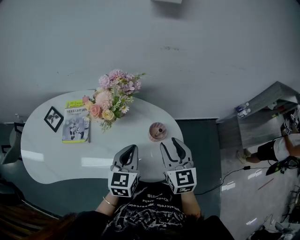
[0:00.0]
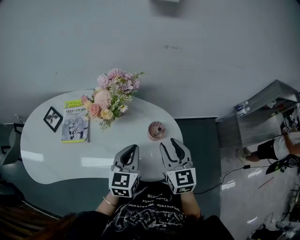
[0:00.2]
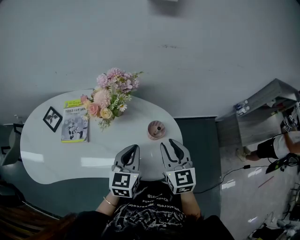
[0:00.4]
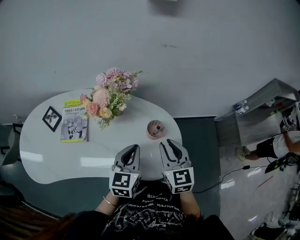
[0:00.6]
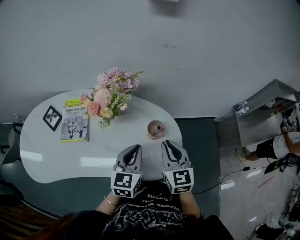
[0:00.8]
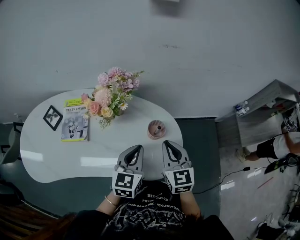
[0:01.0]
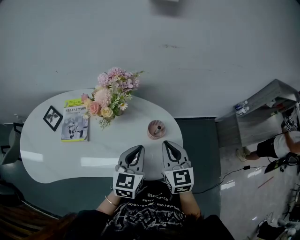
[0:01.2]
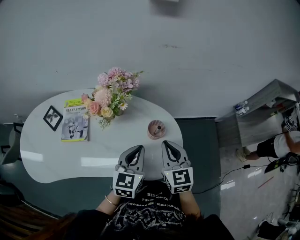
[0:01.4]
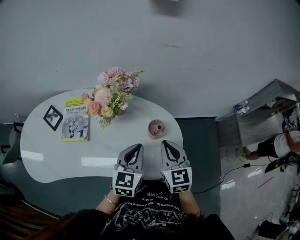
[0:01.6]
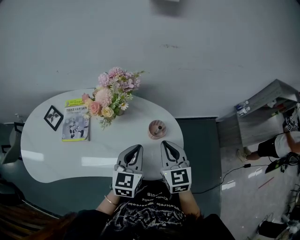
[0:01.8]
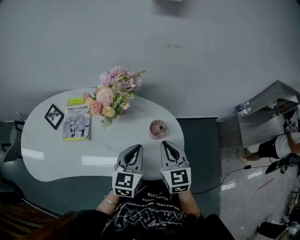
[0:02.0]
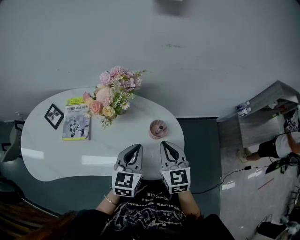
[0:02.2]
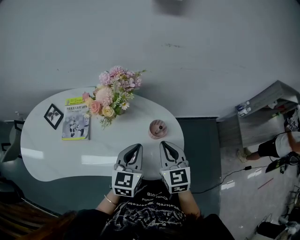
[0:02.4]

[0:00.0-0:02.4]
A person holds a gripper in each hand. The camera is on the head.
0:00.0 to 0:01.2: The right gripper closes up.
0:01.2 to 0:02.4: The grippers make only small movements.

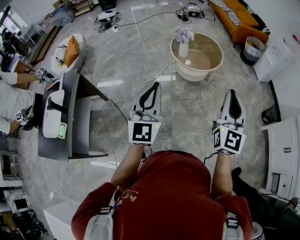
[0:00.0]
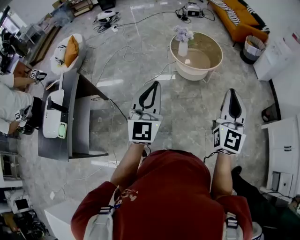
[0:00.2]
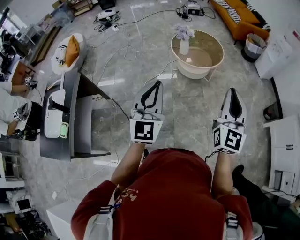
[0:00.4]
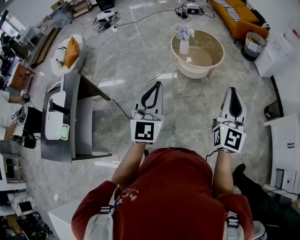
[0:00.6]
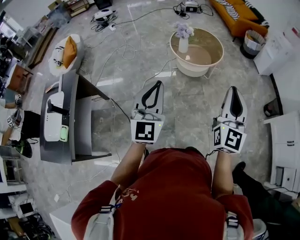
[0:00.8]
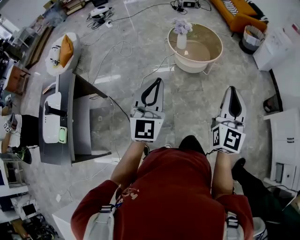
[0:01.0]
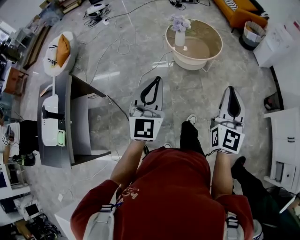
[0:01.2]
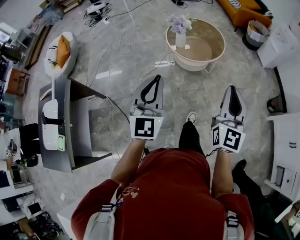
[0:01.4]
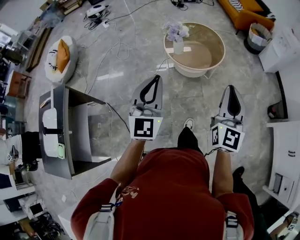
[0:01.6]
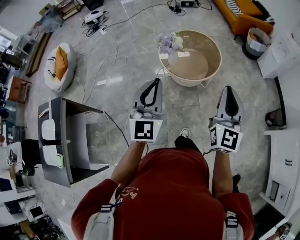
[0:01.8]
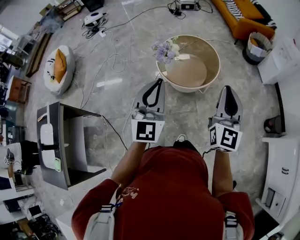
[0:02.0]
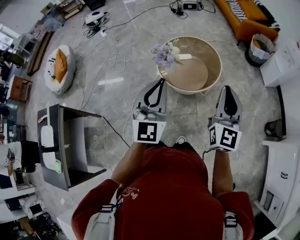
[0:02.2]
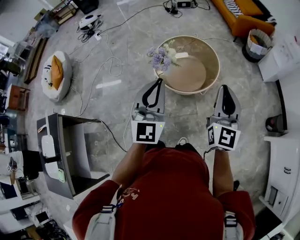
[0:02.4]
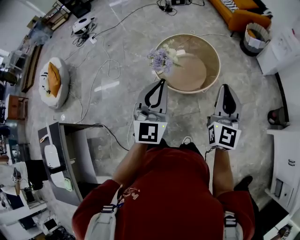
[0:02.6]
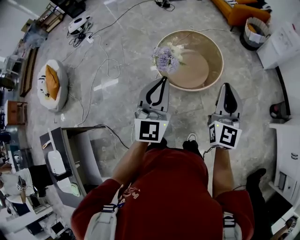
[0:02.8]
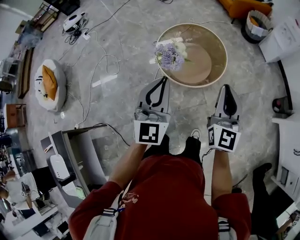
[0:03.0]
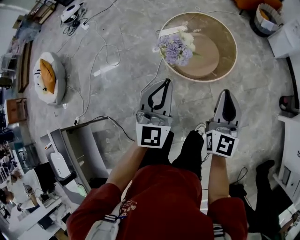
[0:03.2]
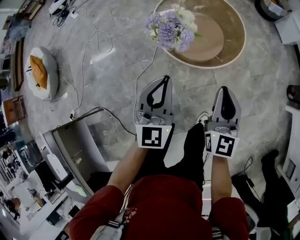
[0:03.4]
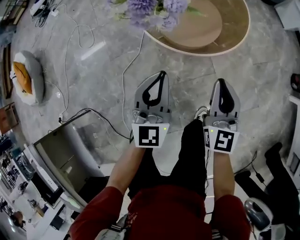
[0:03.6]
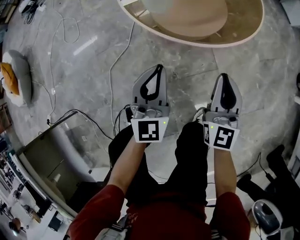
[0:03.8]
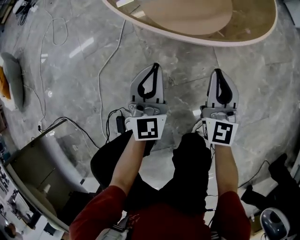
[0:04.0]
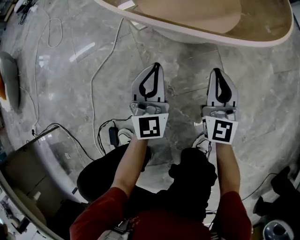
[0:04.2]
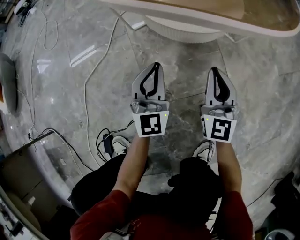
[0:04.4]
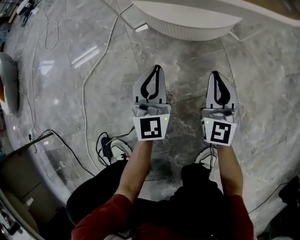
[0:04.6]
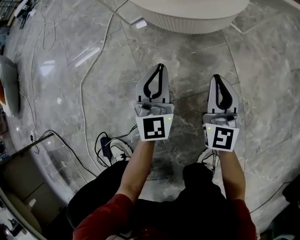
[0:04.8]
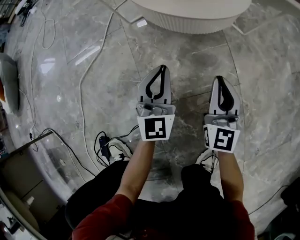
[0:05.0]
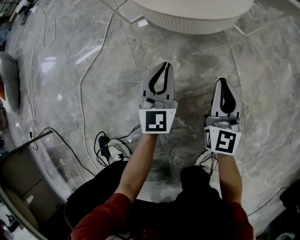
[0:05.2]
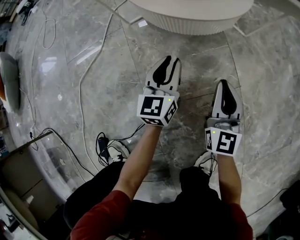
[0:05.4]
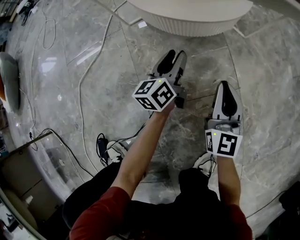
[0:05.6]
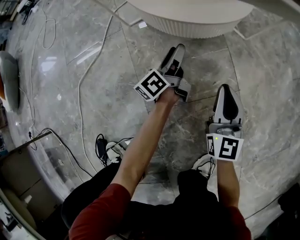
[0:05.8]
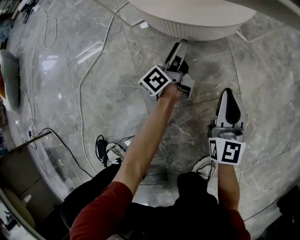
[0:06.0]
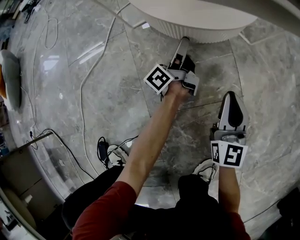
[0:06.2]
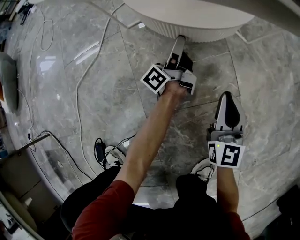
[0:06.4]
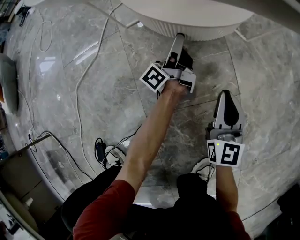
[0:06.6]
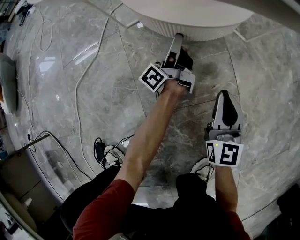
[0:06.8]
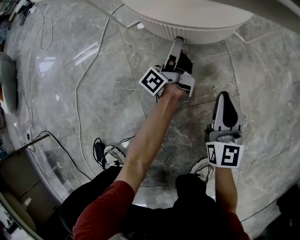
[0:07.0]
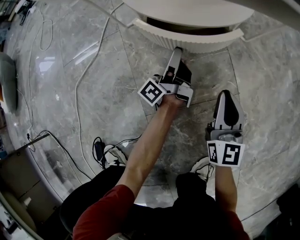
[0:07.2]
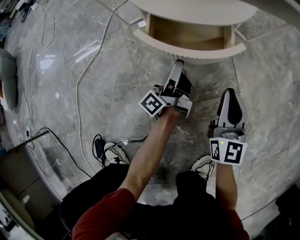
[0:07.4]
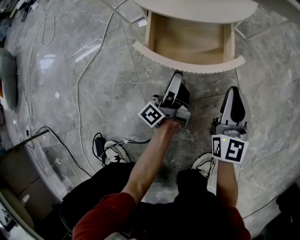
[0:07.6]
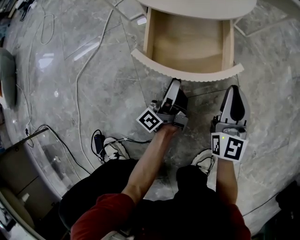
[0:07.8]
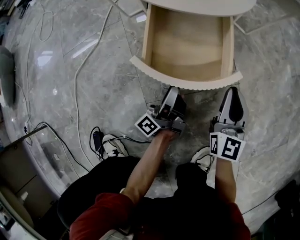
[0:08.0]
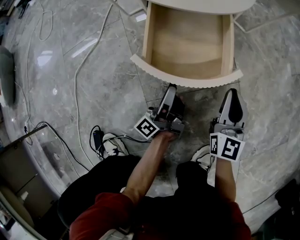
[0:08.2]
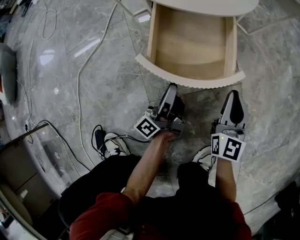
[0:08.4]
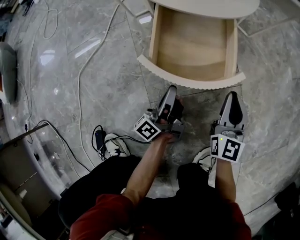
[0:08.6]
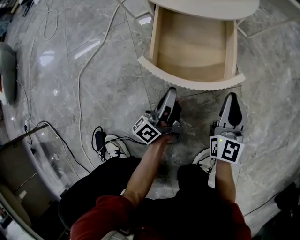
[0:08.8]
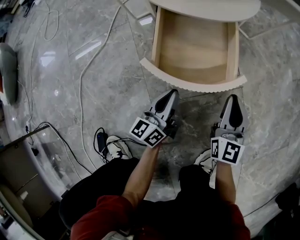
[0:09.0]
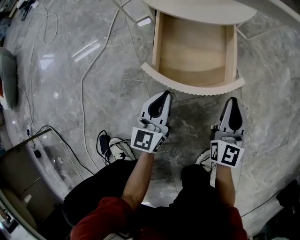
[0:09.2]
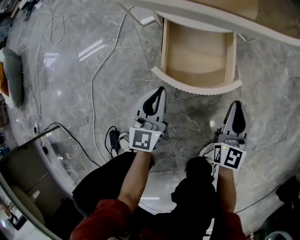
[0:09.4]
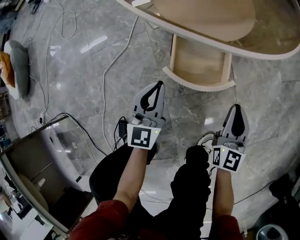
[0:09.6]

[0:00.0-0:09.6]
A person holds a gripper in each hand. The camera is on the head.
0:00.0 to 0:01.6: The two grippers go roughly 20 cm forward.
0:01.6 to 0:03.2: The right gripper travels forward, downward and to the left by approximately 30 cm; the left gripper travels forward by about 30 cm.
0:03.2 to 0:04.8: The grippers both shift downward by some 80 cm.
0:04.8 to 0:06.4: The right gripper shifts by some 5 cm; the left gripper goes roughly 20 cm forward and downward, twists approximately 90 degrees counterclockwise, seen from behind, and opens its fingers.
0:06.4 to 0:08.0: The left gripper goes approximately 20 cm backward.
0:08.0 to 0:09.6: The right gripper shifts roughly 15 cm upward. Meanwhile the left gripper moves upward and to the left, approximately 25 cm, twists roughly 90 degrees clockwise, seen from behind, and closes up.

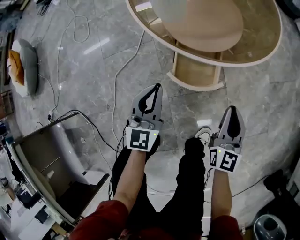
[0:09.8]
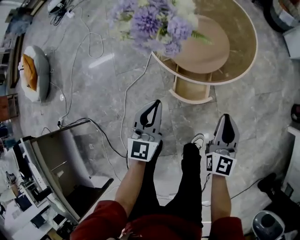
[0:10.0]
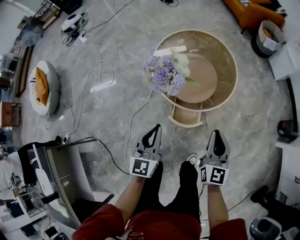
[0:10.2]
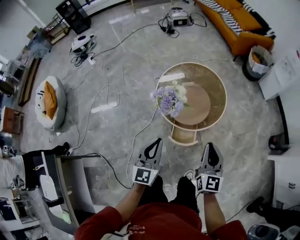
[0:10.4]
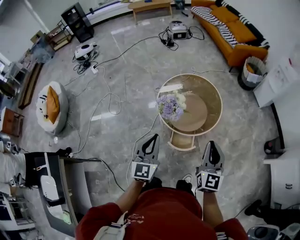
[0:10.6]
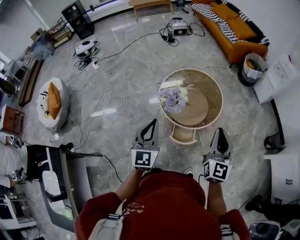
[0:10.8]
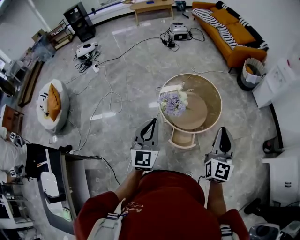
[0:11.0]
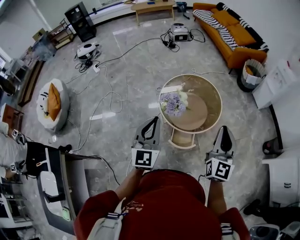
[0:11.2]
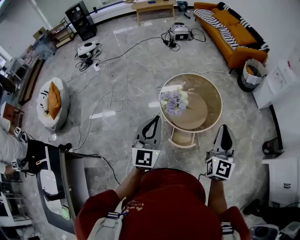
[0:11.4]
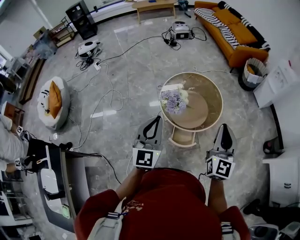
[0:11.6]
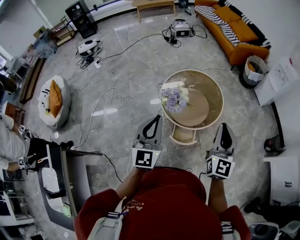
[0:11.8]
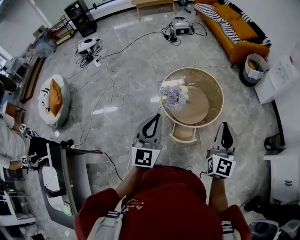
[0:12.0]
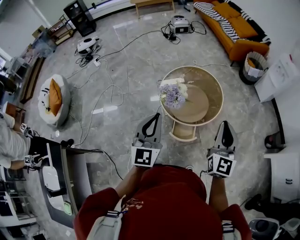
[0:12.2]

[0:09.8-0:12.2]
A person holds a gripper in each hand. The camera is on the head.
0:09.8 to 0:11.0: The grippers both shift upward by about 60 cm. The right gripper turns by roughly 20 degrees.
0:11.0 to 0:12.2: The grippers move only a little.

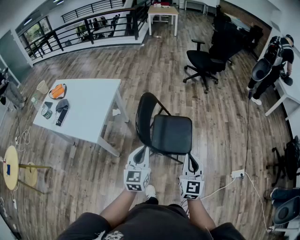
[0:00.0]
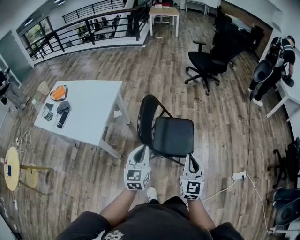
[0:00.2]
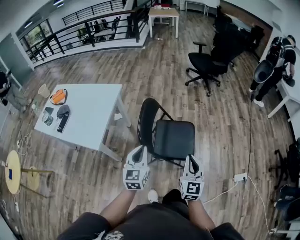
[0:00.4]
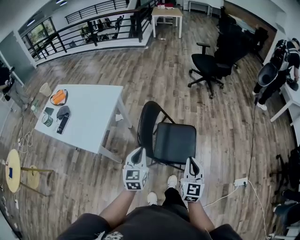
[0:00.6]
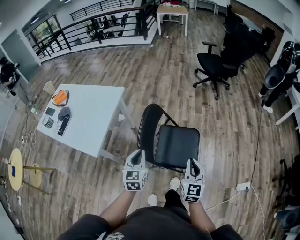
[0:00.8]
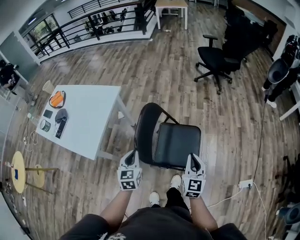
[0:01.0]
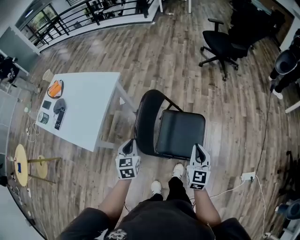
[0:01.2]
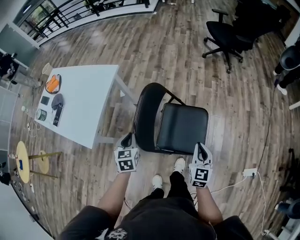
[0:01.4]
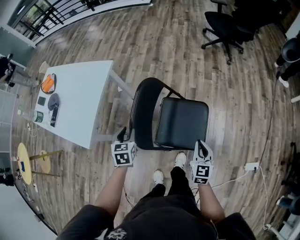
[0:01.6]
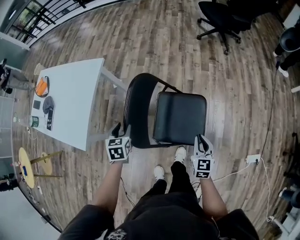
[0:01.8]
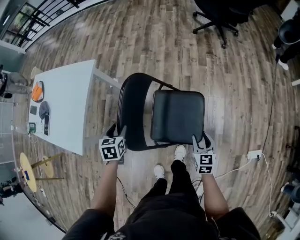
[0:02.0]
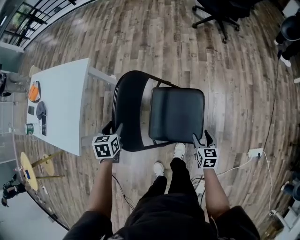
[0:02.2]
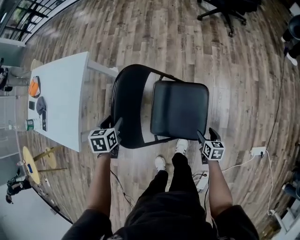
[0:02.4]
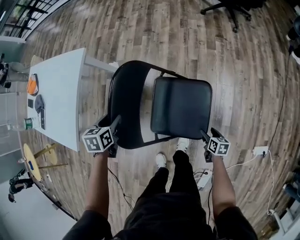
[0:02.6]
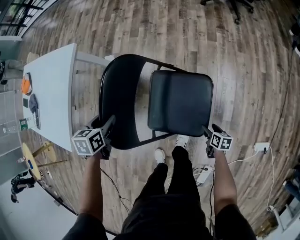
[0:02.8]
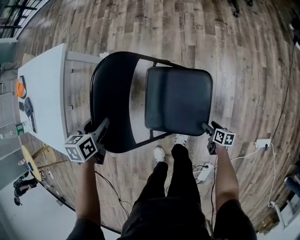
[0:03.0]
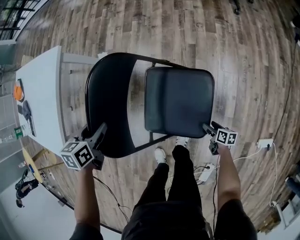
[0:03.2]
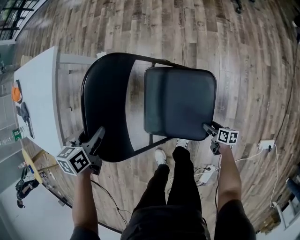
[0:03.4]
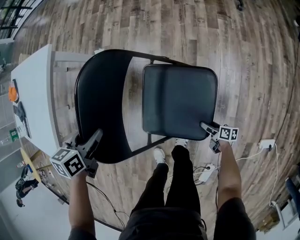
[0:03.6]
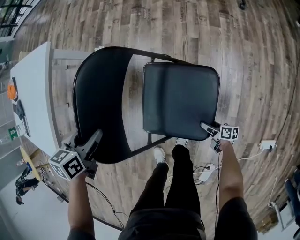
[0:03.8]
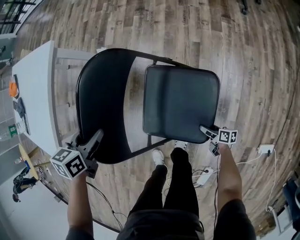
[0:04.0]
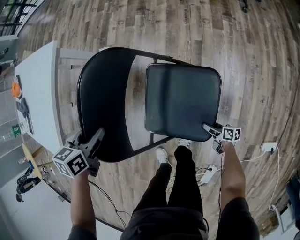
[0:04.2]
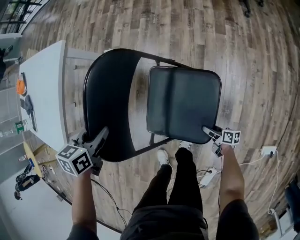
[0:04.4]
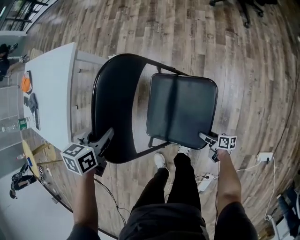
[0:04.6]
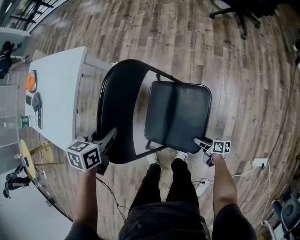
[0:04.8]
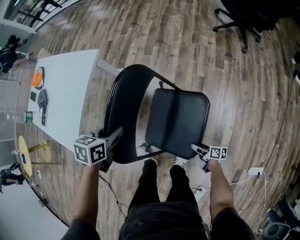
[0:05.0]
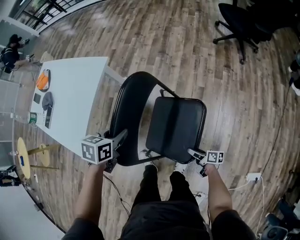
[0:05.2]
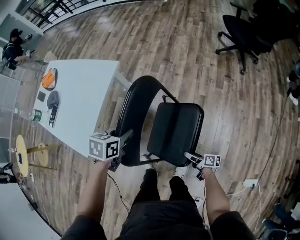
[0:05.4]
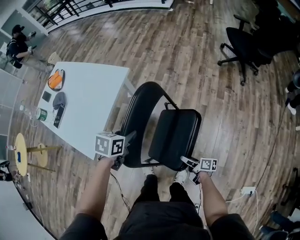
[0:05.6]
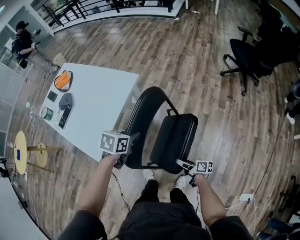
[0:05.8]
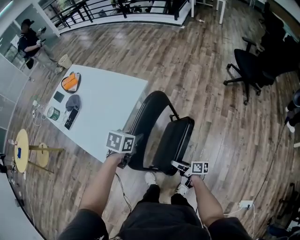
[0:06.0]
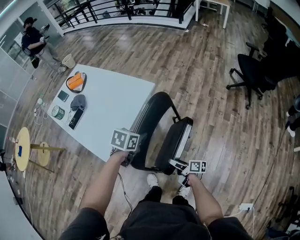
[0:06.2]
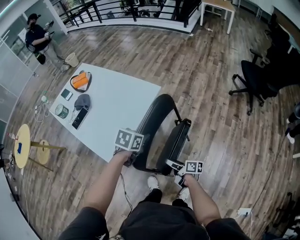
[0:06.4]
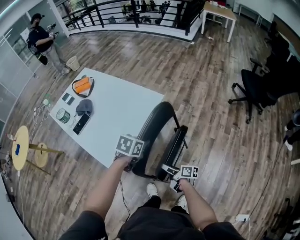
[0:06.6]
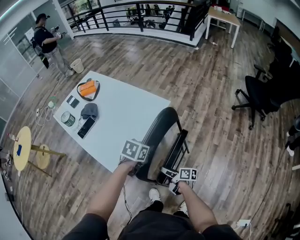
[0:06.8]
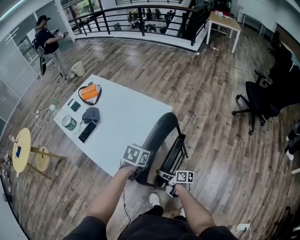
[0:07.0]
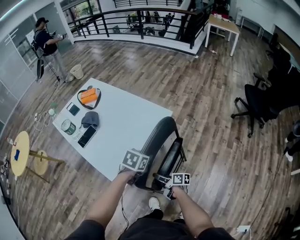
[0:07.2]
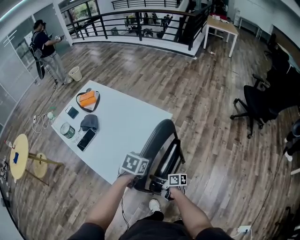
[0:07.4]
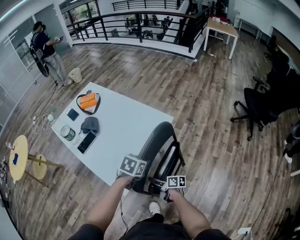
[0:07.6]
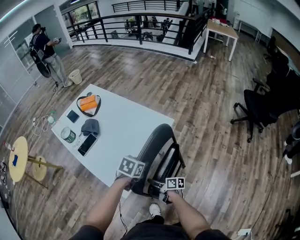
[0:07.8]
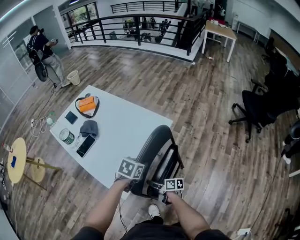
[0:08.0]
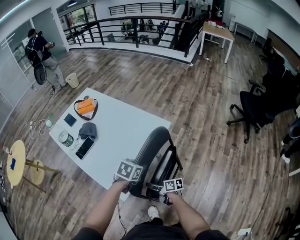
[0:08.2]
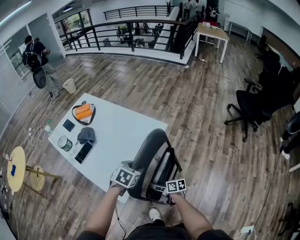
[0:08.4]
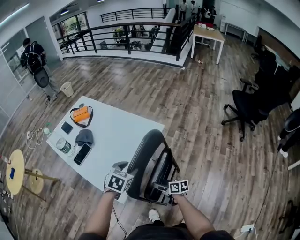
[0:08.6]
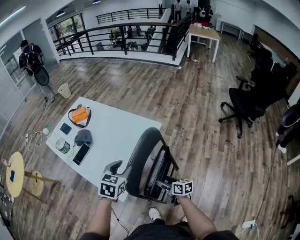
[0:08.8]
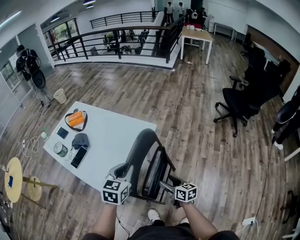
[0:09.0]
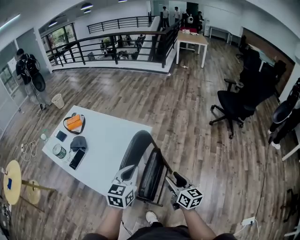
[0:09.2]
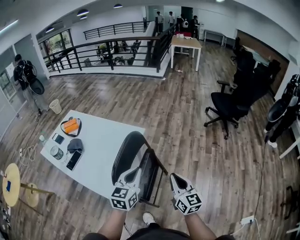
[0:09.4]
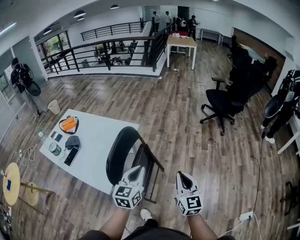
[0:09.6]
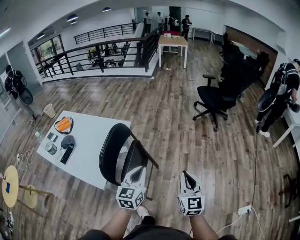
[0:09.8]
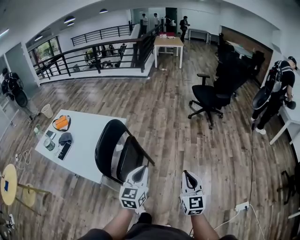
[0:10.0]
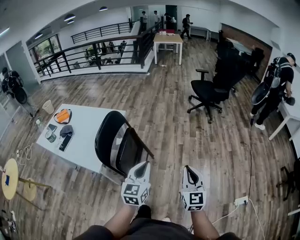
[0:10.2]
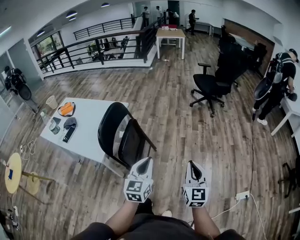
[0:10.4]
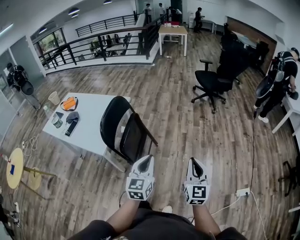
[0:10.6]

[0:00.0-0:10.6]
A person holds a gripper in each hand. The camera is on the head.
0:00.0 to 0:01.6: The grippers both shift forward and downward by some 30 cm. The left gripper tips its fingers downward by roughly 40 degrees, and opens its fingers, while the right gripper swivels approximately 20 degrees.
0:01.6 to 0:03.0: The left gripper is displaced downward and forward by some 15 cm, and rotates roughly 20 degrees. Meanwhile the right gripper is displaced downward by about 40 cm, turns by about 60 degrees, and opens.
0:03.0 to 0:04.6: The left gripper closes up; the right gripper shifts some 5 cm to the left, and swivels roughly 20 degrees.
0:04.6 to 0:06.0: The right gripper heads upward and to the left, covering about 40 cm, while the left gripper heads upward and to the left, covering approximately 20 cm.
0:06.0 to 0:07.6: The right gripper heads to the left and forward, covering approximately 30 cm; the left gripper shifts roughly 15 cm to the left and forward.
0:07.6 to 0:09.0: The left gripper shifts about 15 cm upward, rotates about 30 degrees, and opens, then closes again. Meanwhile the right gripper travels upward and to the right by about 15 cm, and changes its angle by about 40 degrees.
0:09.0 to 0:10.6: The pair of grippers is taken approximately 50 cm. The right gripper rotates about 60 degrees, and closes up, while the left gripper turns by some 20 degrees.
